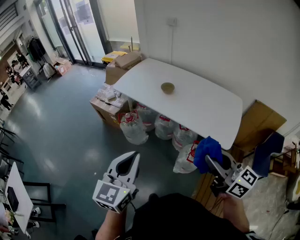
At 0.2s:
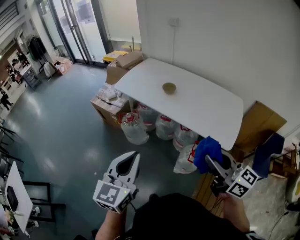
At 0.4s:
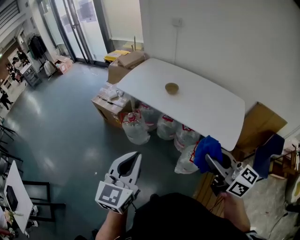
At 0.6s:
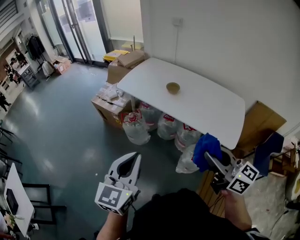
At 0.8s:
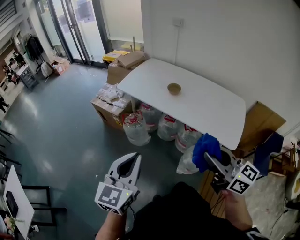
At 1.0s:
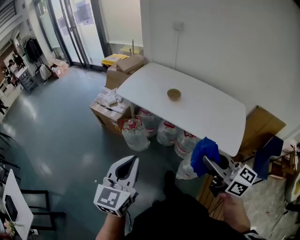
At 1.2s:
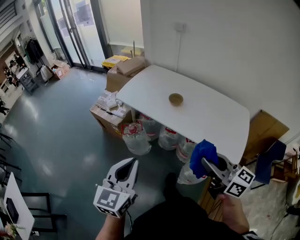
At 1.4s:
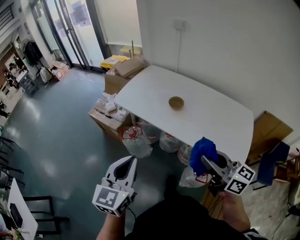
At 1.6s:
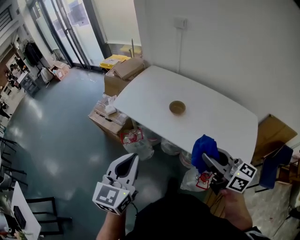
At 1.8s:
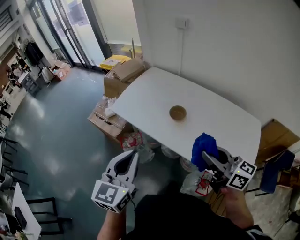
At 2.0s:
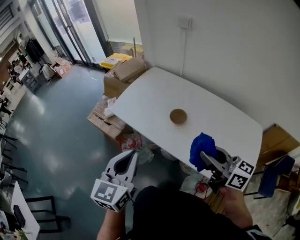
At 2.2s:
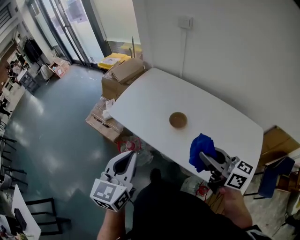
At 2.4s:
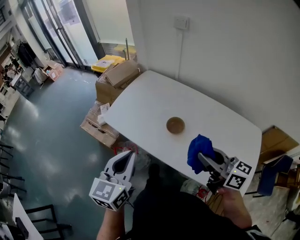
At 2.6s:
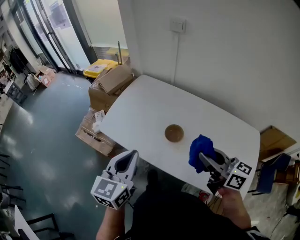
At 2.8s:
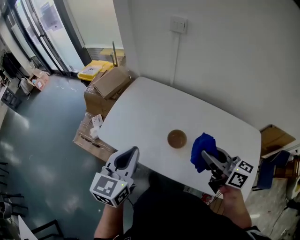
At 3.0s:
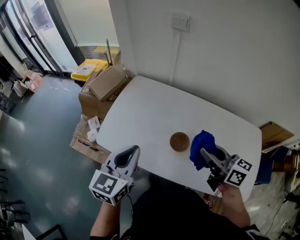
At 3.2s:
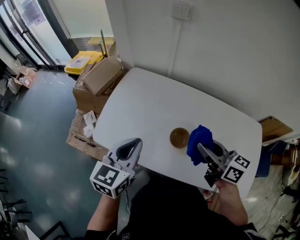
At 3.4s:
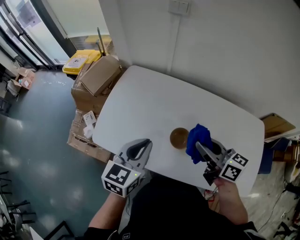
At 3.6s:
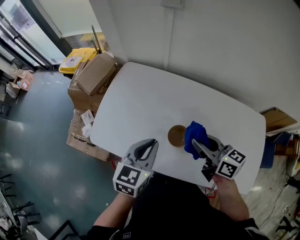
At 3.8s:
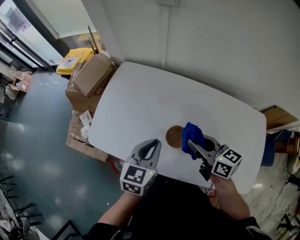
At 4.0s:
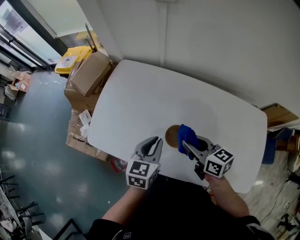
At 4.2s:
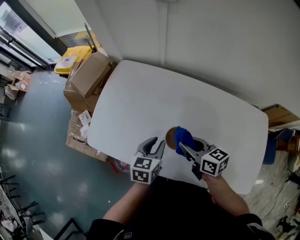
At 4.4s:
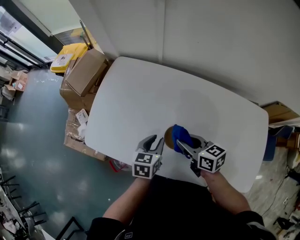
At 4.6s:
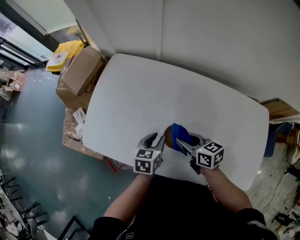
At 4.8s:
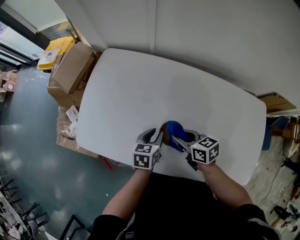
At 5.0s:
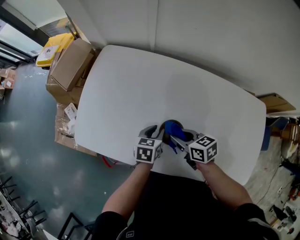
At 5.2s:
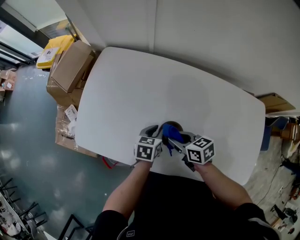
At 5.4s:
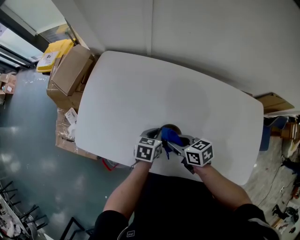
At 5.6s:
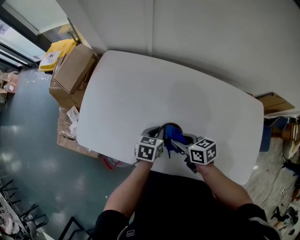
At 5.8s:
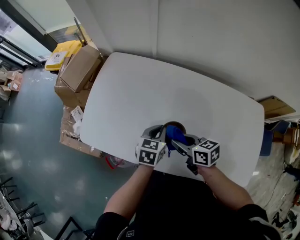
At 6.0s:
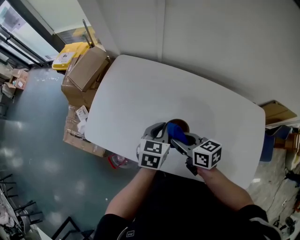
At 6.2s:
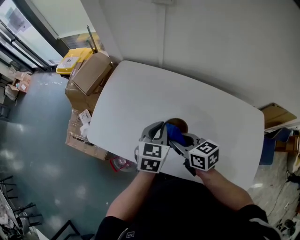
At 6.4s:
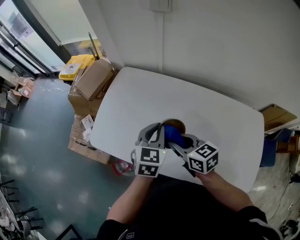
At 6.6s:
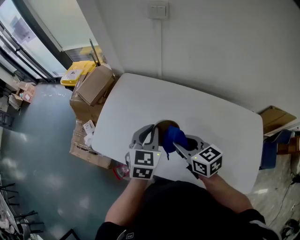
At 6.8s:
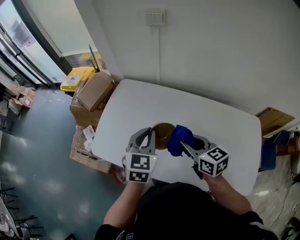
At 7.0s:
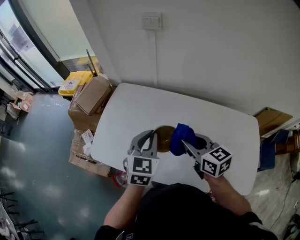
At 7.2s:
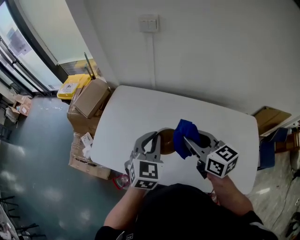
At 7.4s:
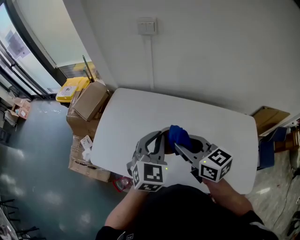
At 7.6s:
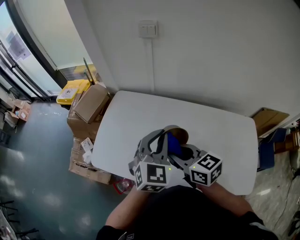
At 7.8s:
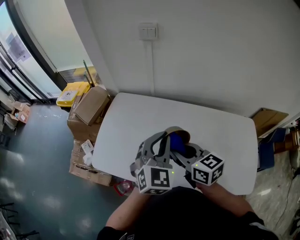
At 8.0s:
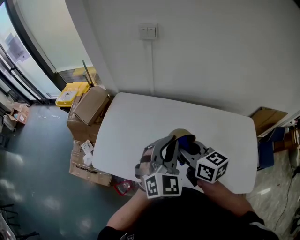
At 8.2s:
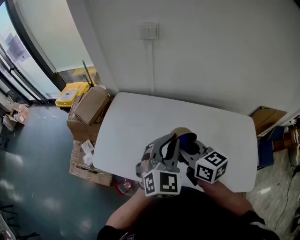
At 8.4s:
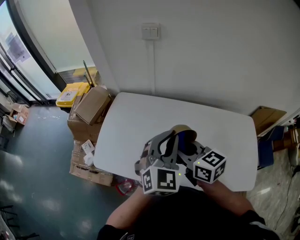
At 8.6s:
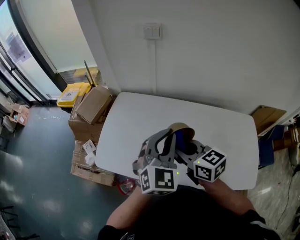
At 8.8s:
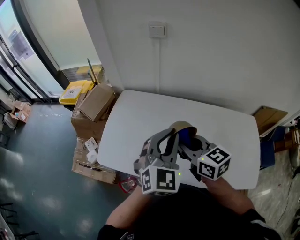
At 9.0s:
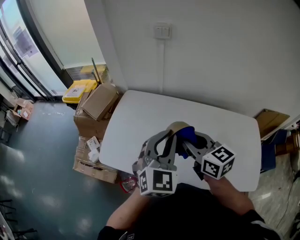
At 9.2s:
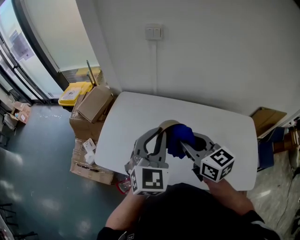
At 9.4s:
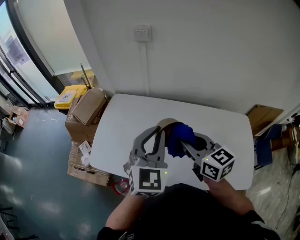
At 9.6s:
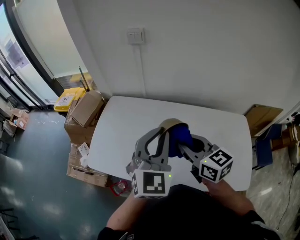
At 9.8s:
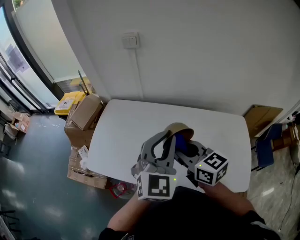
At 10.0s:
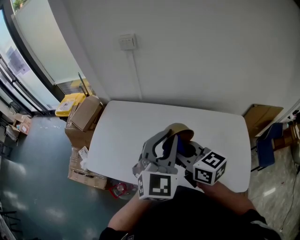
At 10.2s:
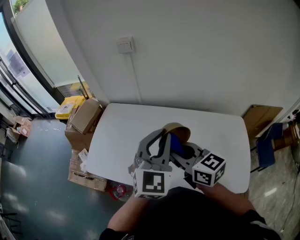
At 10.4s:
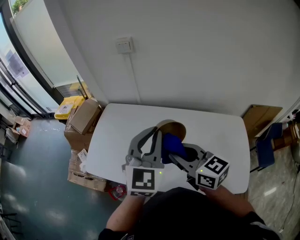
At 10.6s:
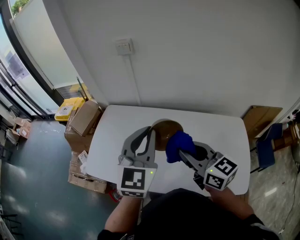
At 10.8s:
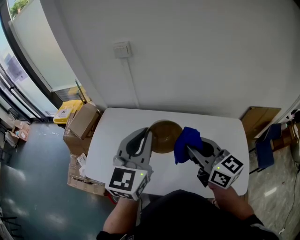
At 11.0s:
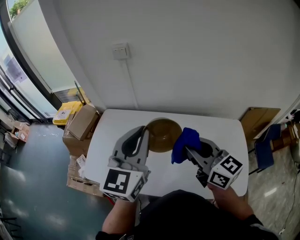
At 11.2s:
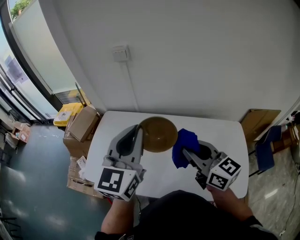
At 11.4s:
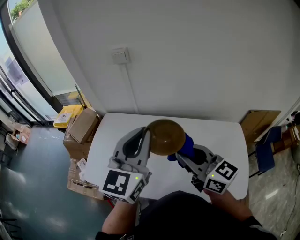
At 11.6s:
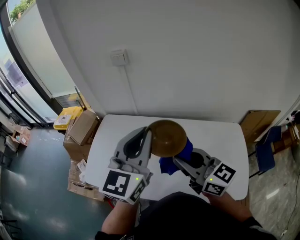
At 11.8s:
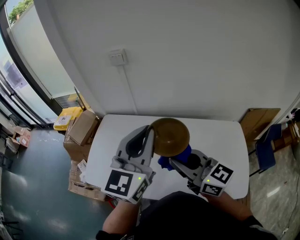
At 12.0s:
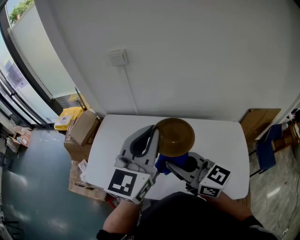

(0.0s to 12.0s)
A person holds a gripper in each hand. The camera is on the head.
0.0s - 1.6s: Both grippers travel together forward, approximately 25 cm.
1.6s - 3.0s: The grippers both shift forward by approximately 35 cm.
3.0s - 4.4s: The left gripper goes some 25 cm downward and to the right, rotates some 30 degrees, and opens up. Meanwhile the right gripper shifts approximately 20 cm downward and forward, and changes its angle by approximately 20 degrees.
4.4s - 6.0s: The left gripper shifts some 5 cm upward, and closes, while the right gripper travels downward and back again, some 10 cm each way.
6.0s - 7.6s: The two grippers go approximately 15 cm upward. The left gripper swivels about 40 degrees.
7.6s - 9.0s: The left gripper changes place by approximately 10 cm.
9.0s - 10.4s: The right gripper moves to the right and backward, roughly 10 cm, while the left gripper moves to the right and upward, roughly 10 cm.
10.4s - 12.0s: The left gripper shifts roughly 5 cm upward, and changes its angle by approximately 20 degrees.

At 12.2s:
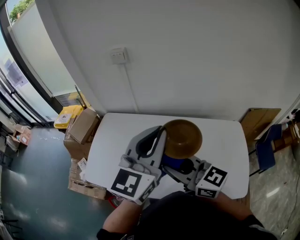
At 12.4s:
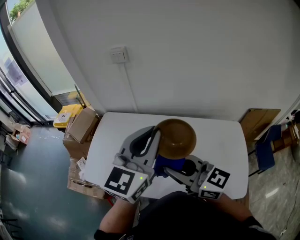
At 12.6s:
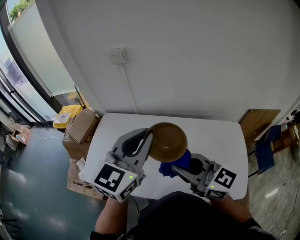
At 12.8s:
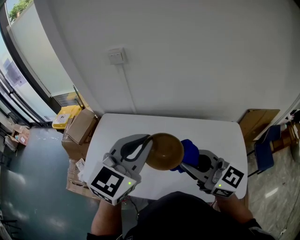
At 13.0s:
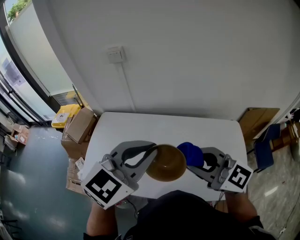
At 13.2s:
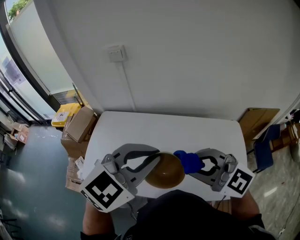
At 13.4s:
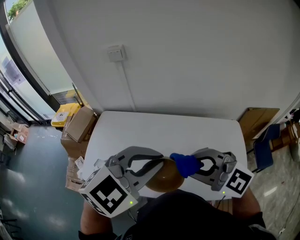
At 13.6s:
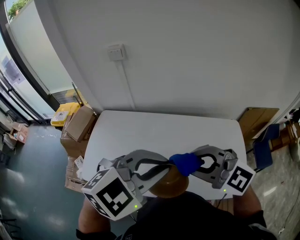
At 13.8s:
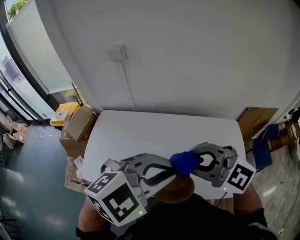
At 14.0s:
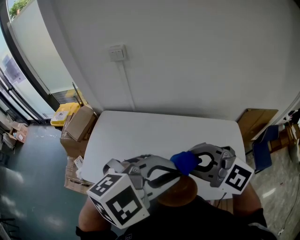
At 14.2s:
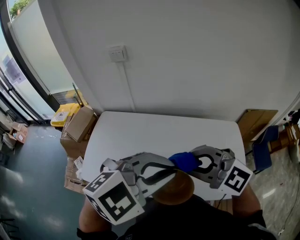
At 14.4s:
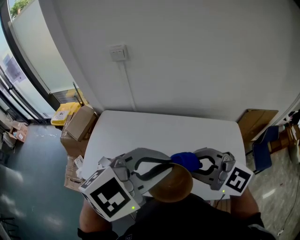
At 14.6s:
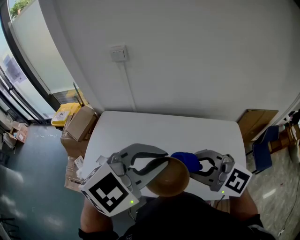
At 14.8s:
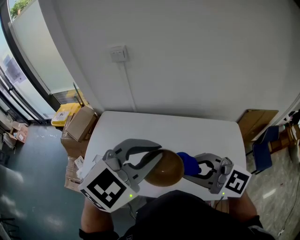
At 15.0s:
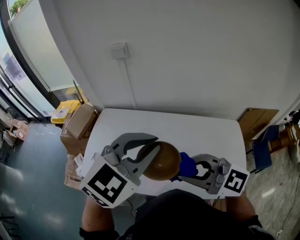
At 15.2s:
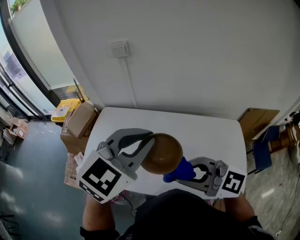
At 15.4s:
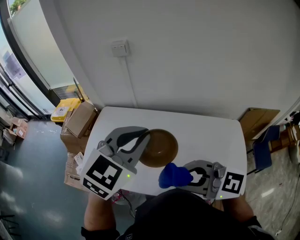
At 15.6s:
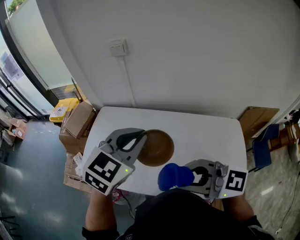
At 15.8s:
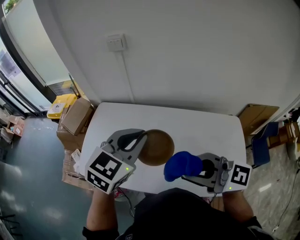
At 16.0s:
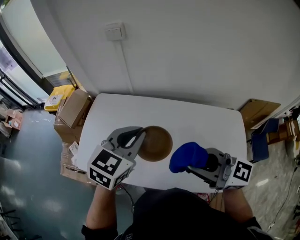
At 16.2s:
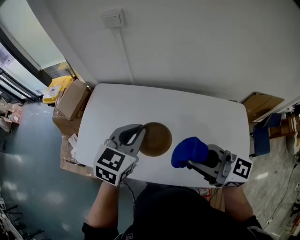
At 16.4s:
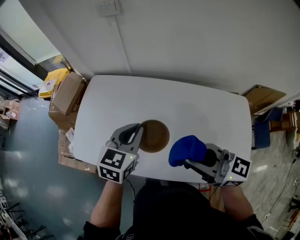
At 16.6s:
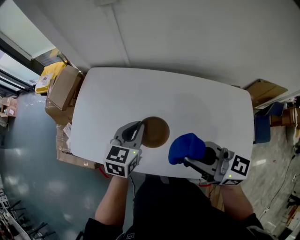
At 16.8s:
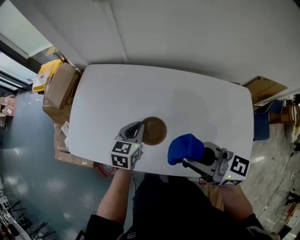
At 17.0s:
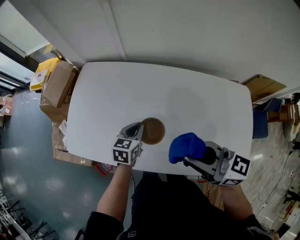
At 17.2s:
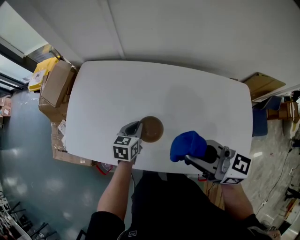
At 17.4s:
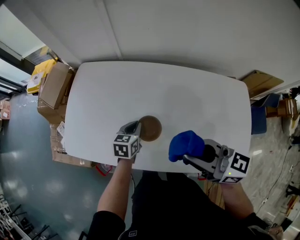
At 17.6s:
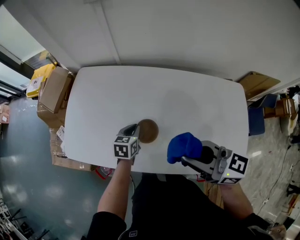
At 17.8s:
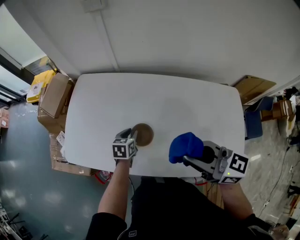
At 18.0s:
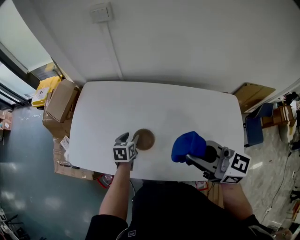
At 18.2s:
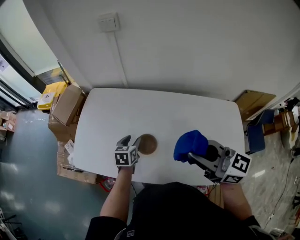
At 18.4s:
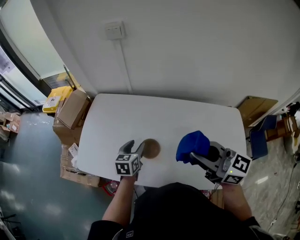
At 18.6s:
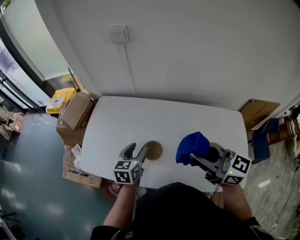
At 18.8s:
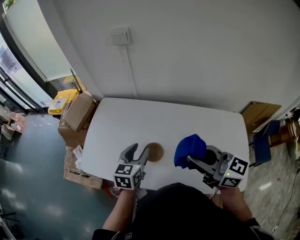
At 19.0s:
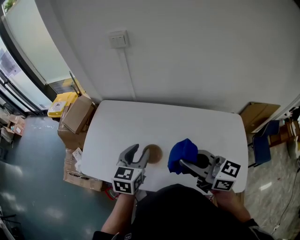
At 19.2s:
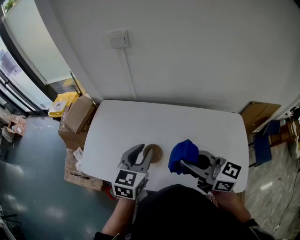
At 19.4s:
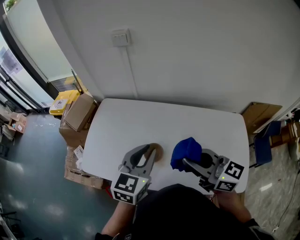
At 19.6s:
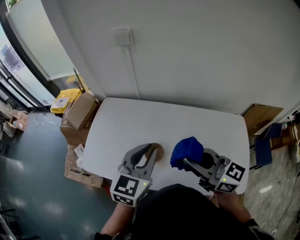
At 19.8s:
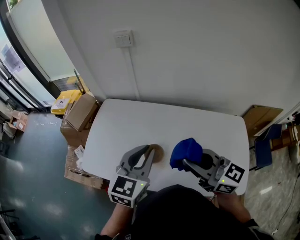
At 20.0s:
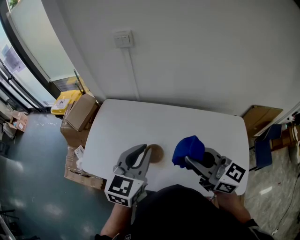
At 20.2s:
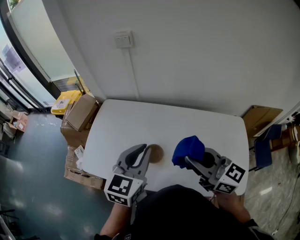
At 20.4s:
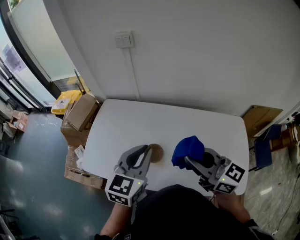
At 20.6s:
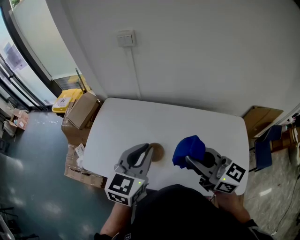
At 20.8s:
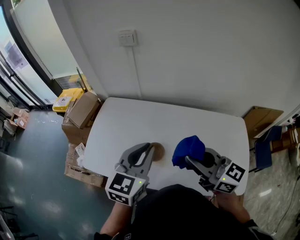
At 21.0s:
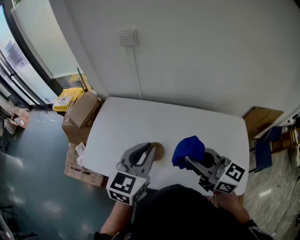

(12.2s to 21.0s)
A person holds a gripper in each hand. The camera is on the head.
12.2s - 13.6s: The right gripper ends up roughly 5 cm from where it was, and swivels approximately 40 degrees. Meanwhile the left gripper shifts by some 10 cm, and tilts its fingers approximately 40 degrees downward.
13.6s - 15.2s: The left gripper shifts by approximately 10 cm, and rotates about 20 degrees.
15.2s - 16.6s: The right gripper heads downward and forward, covering approximately 15 cm, and turns by roughly 40 degrees. The left gripper travels downward by some 30 cm, and changes its angle by some 40 degrees.
16.6s - 18.0s: The left gripper shifts approximately 15 cm downward, rotates approximately 20 degrees, and opens up.
18.0s - 19.6s: The left gripper goes some 30 cm upward, turns by roughly 40 degrees, and closes.
19.6s - 21.0s: The grippers make only small movements.

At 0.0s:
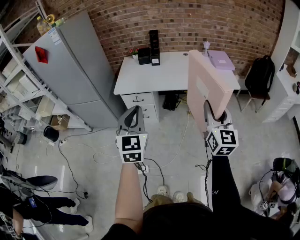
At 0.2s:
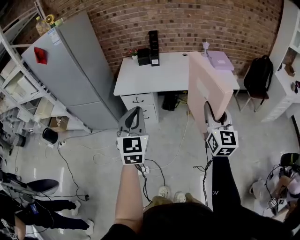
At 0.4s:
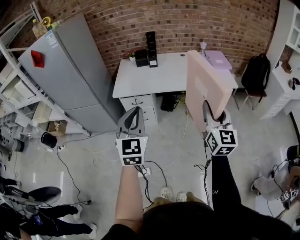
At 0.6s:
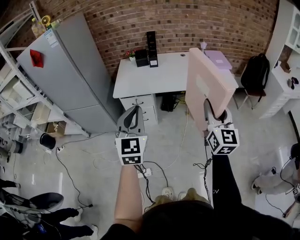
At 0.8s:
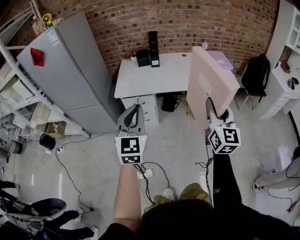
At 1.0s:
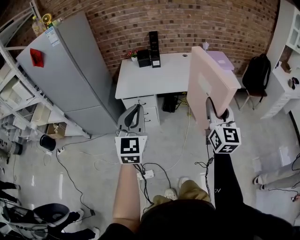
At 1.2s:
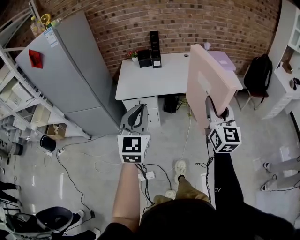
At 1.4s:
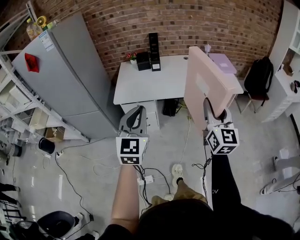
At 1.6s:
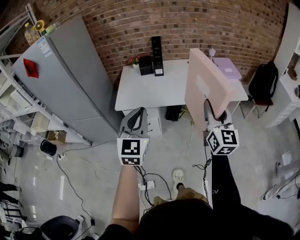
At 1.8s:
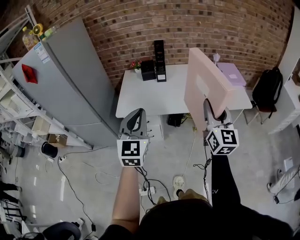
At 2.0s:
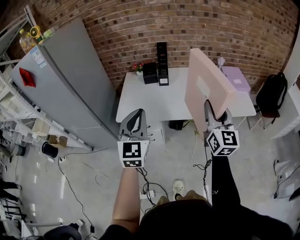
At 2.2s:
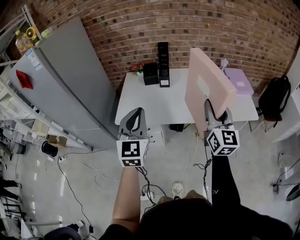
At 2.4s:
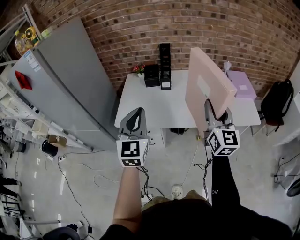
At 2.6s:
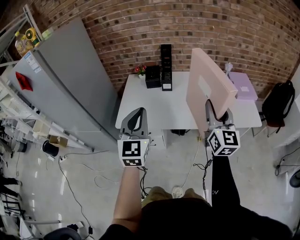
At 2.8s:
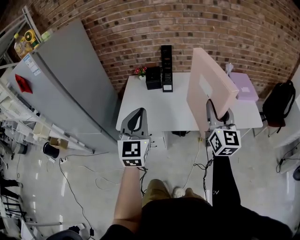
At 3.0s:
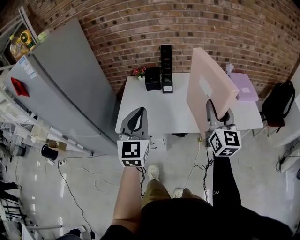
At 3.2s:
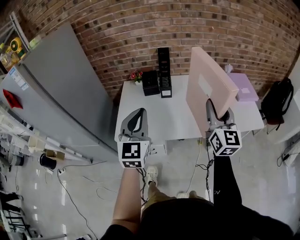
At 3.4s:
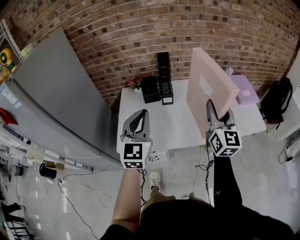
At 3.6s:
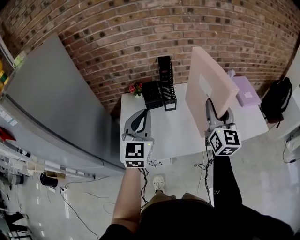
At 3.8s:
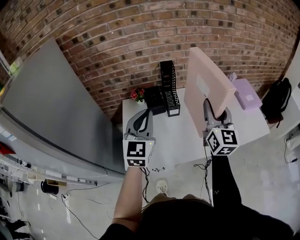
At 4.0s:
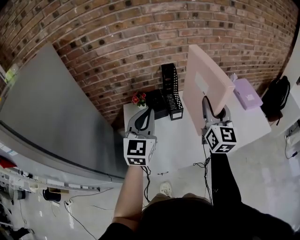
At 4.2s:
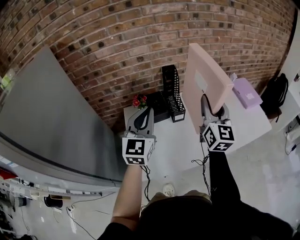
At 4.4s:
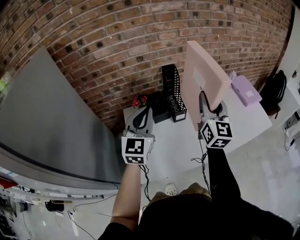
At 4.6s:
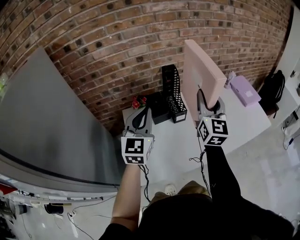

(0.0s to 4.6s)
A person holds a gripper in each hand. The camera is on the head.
0.0s - 1.6s: The two grippers go approximately 15 cm forward and to the left.
1.6s - 3.0s: Both grippers travel together forward, about 25 cm.
3.0s - 4.6s: The grippers both shift forward and to the left by approximately 35 cm. The right gripper swivels about 20 degrees. Meanwhile the left gripper turns by roughly 20 degrees.
